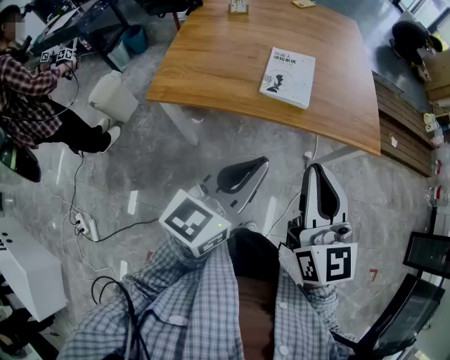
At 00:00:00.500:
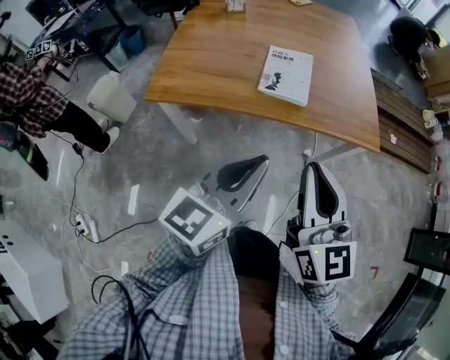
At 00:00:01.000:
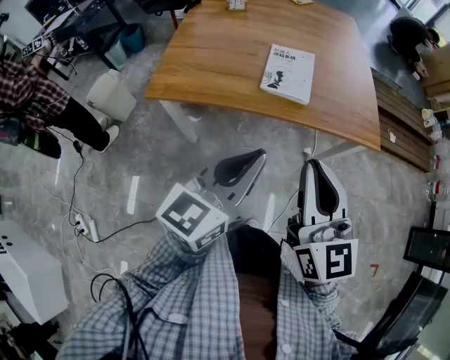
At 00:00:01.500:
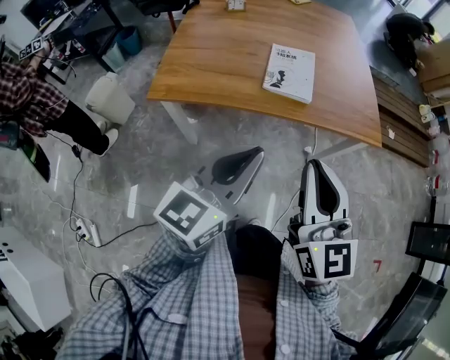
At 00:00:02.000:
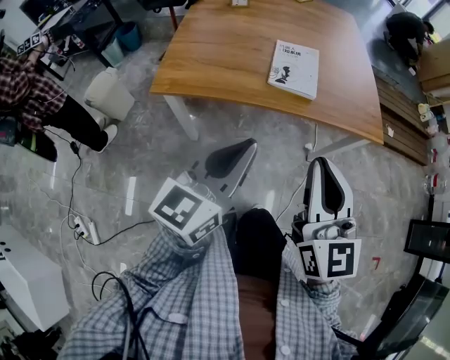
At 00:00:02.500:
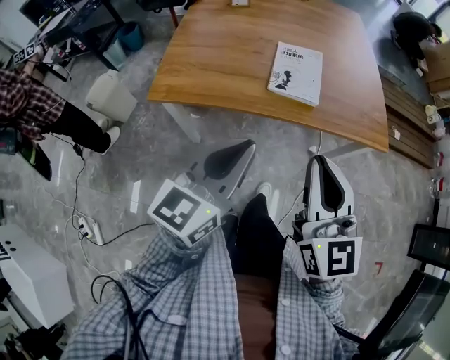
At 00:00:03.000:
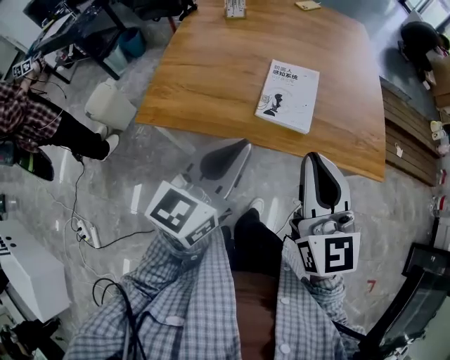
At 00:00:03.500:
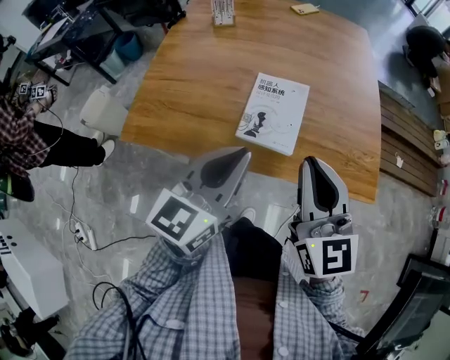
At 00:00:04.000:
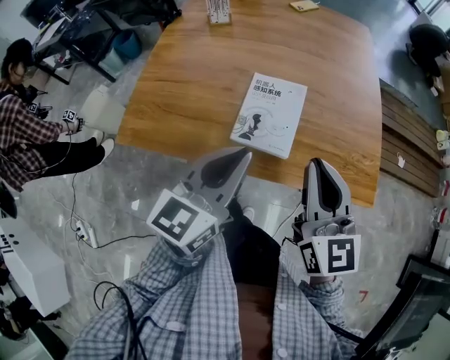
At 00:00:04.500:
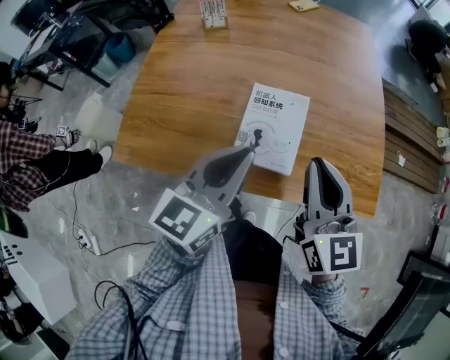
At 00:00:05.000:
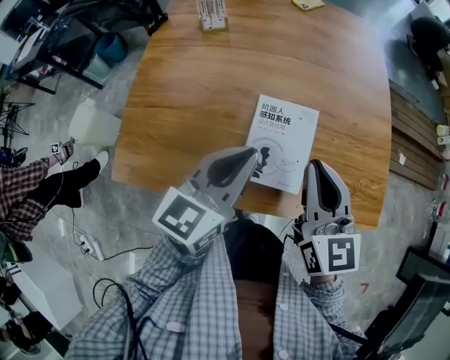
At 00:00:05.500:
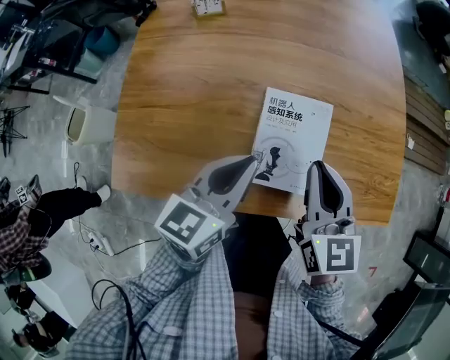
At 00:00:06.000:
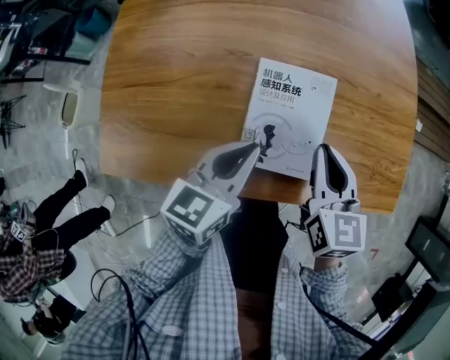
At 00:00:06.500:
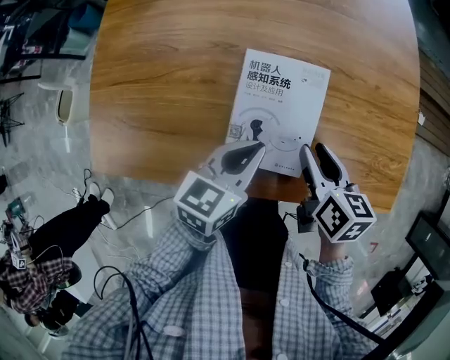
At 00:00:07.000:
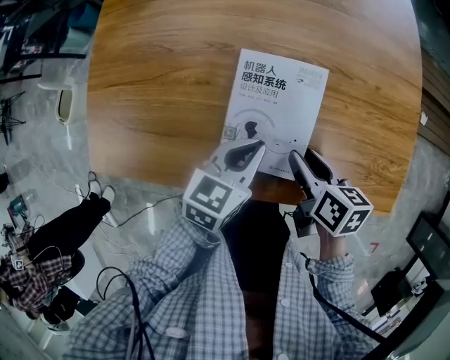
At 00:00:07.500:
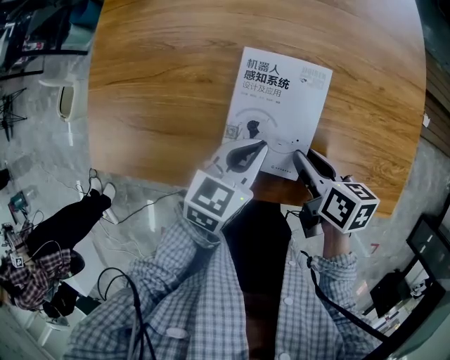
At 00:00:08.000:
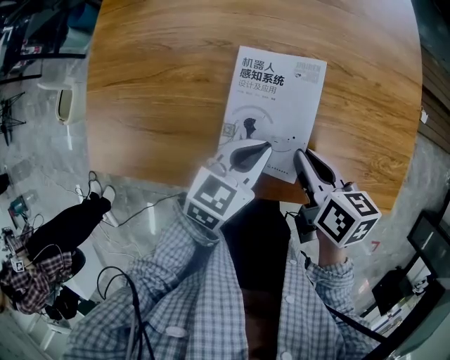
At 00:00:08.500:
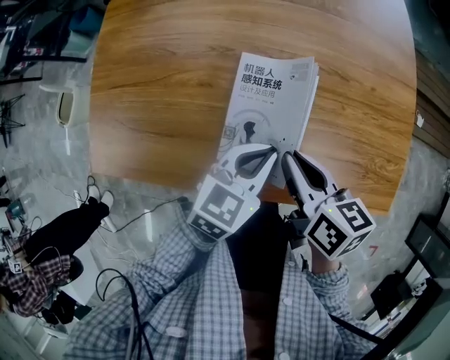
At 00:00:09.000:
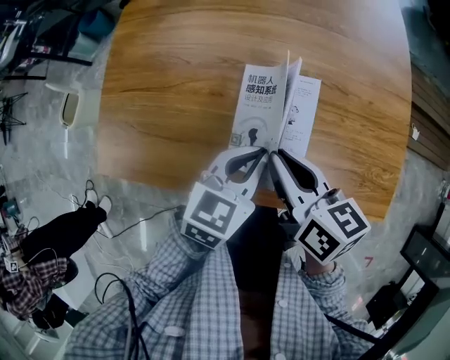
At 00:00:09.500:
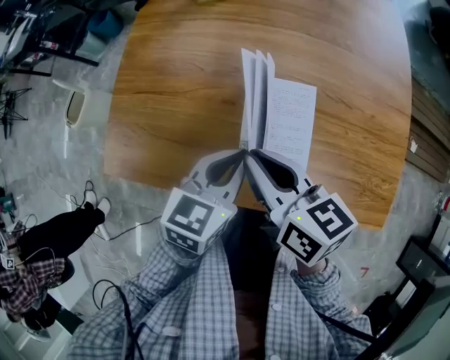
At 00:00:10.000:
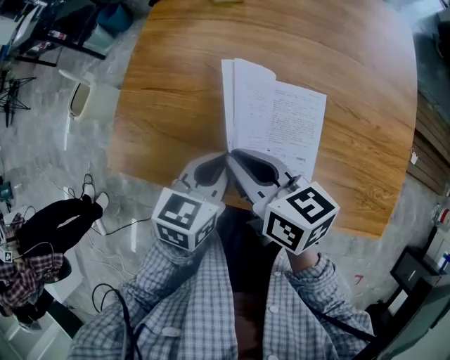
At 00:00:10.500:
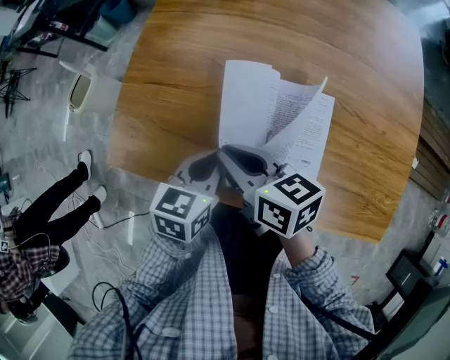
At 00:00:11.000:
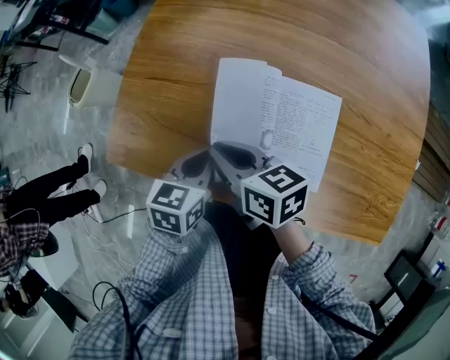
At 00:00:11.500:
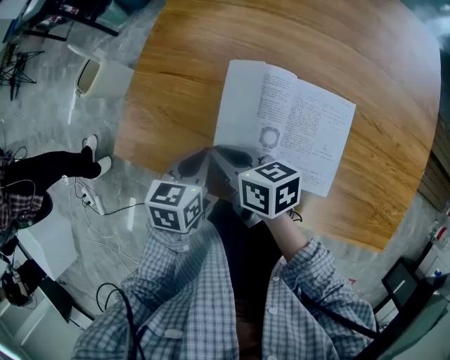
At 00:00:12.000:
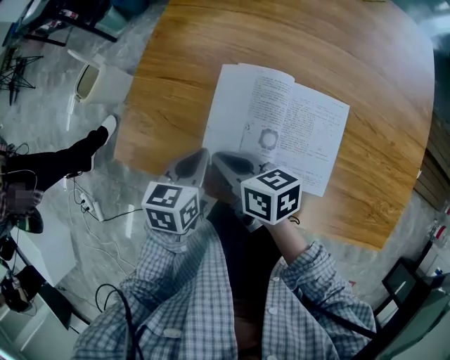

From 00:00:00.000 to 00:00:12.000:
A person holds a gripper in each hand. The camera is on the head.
From 00:00:00.000 to 00:00:02.000: The right gripper shifts by approximately 5 cm. The left gripper is displaced to the left by roughly 10 cm.
From 00:00:02.000 to 00:00:04.000: The two grippers go about 30 cm forward.
From 00:00:04.000 to 00:00:06.000: Both grippers move downward and forward, about 20 cm. The left gripper changes its angle by about 20 degrees. Meanwhile the right gripper rotates about 30 degrees.
From 00:00:06.000 to 00:00:08.000: The left gripper is displaced to the right and downward by some 10 cm; the right gripper is displaced downward by approximately 5 cm, changes its angle by some 40 degrees, and opens, then closes again.
From 00:00:08.000 to 00:00:10.000: The grippers both shift to the left and upward by roughly 20 cm. The right gripper rotates some 30 degrees, while the left gripper turns by about 20 degrees.
From 00:00:10.000 to 00:00:12.000: The left gripper shifts some 15 cm to the left and downward. Meanwhile the right gripper shifts some 15 cm downward and to the left.

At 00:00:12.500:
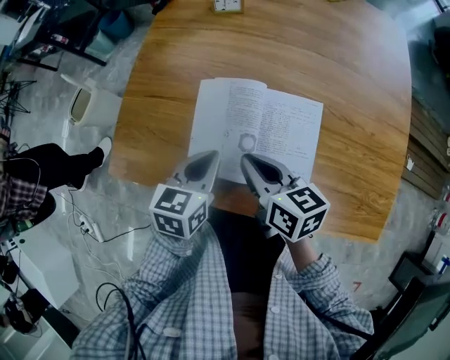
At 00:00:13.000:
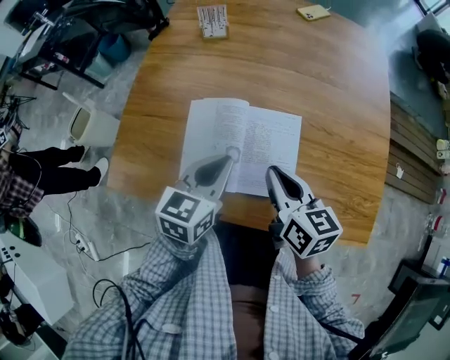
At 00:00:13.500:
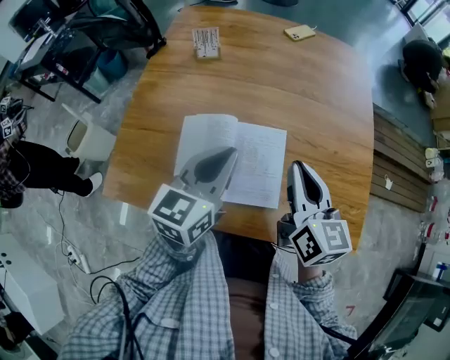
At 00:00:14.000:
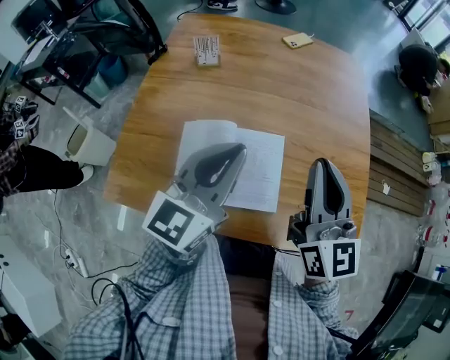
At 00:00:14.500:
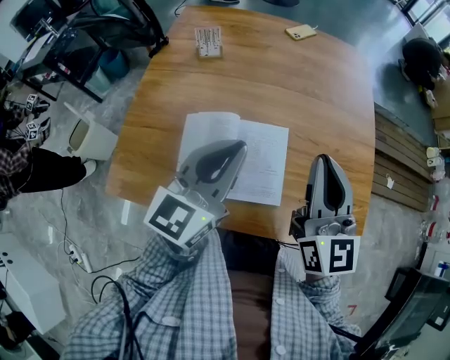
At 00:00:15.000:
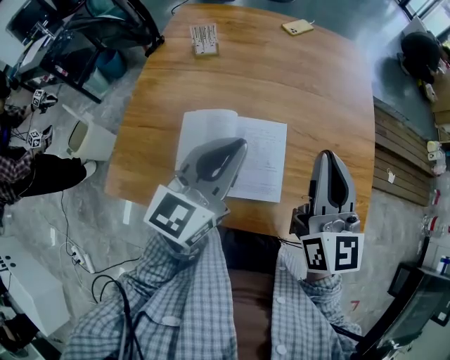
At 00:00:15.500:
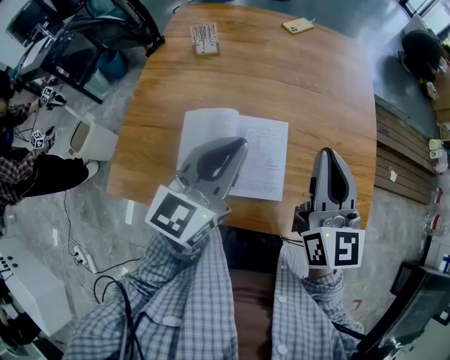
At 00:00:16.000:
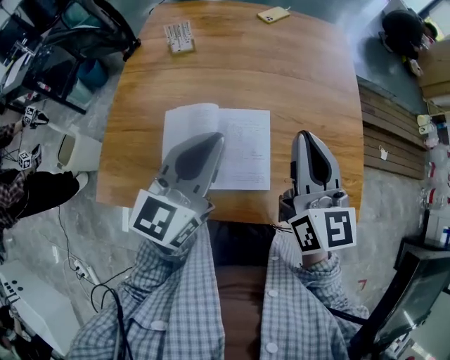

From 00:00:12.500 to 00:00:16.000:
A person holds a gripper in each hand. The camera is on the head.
From 00:00:12.500 to 00:00:14.500: Both grippers move upward and to the right, approximately 25 cm. The right gripper turns by roughly 60 degrees, while the left gripper angles its fingers upward, by roughly 40 degrees.
From 00:00:14.500 to 00:00:16.000: There are only small adjustments of the grippers.

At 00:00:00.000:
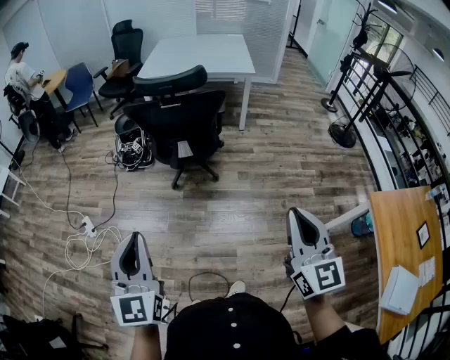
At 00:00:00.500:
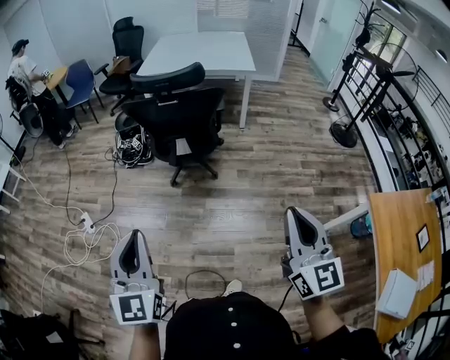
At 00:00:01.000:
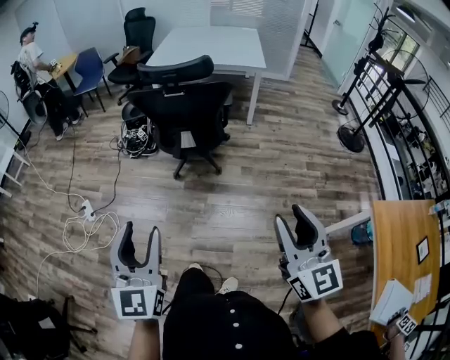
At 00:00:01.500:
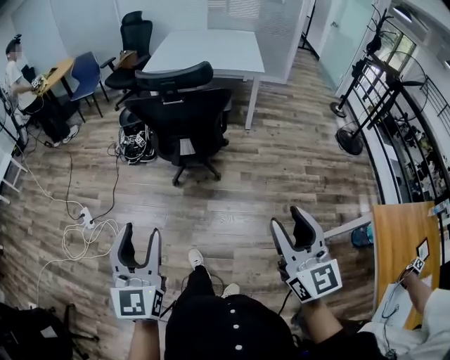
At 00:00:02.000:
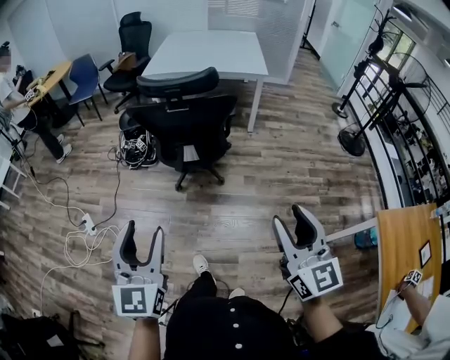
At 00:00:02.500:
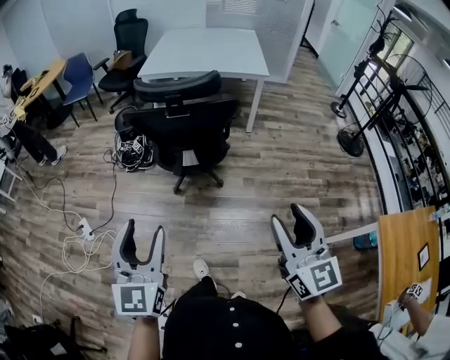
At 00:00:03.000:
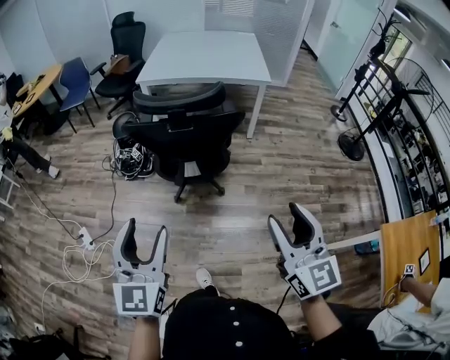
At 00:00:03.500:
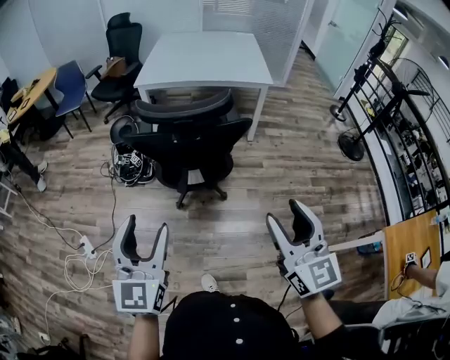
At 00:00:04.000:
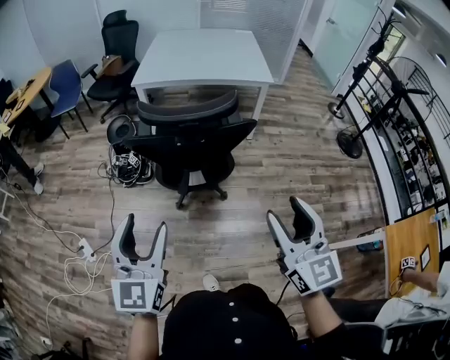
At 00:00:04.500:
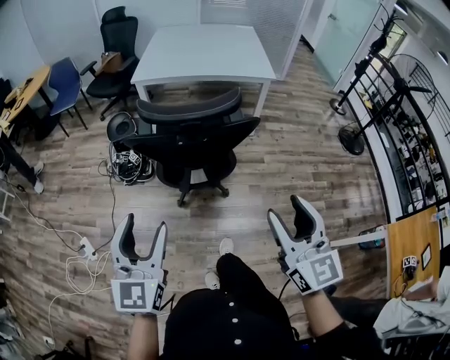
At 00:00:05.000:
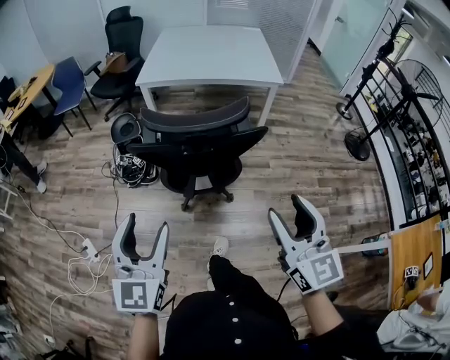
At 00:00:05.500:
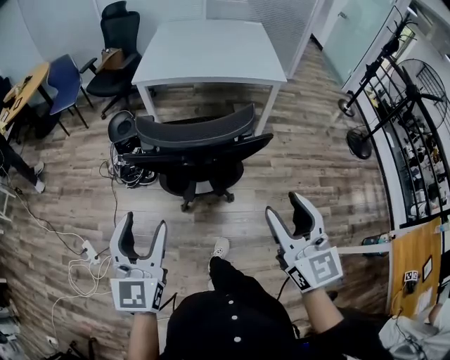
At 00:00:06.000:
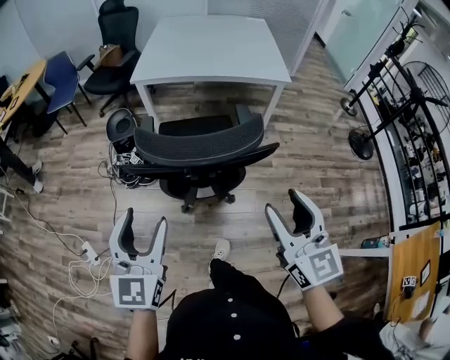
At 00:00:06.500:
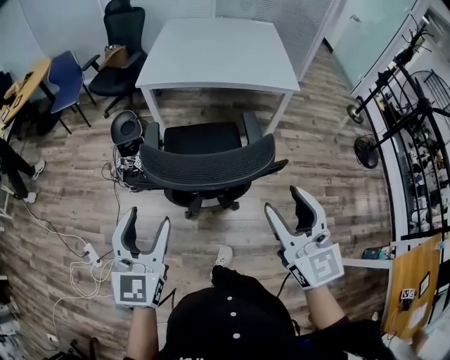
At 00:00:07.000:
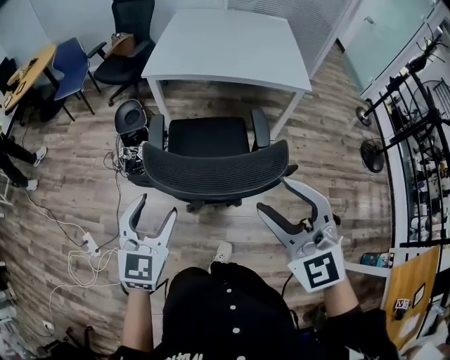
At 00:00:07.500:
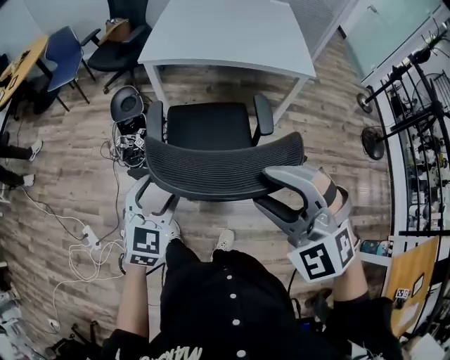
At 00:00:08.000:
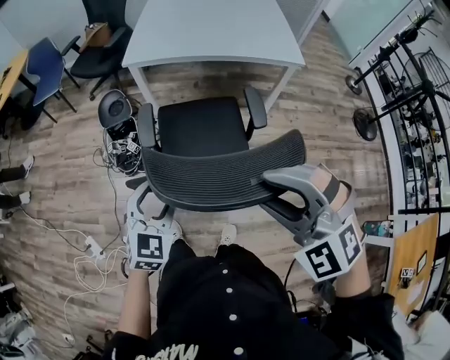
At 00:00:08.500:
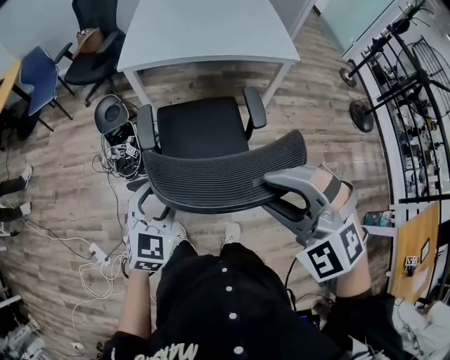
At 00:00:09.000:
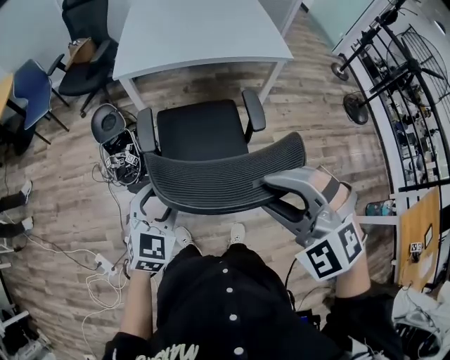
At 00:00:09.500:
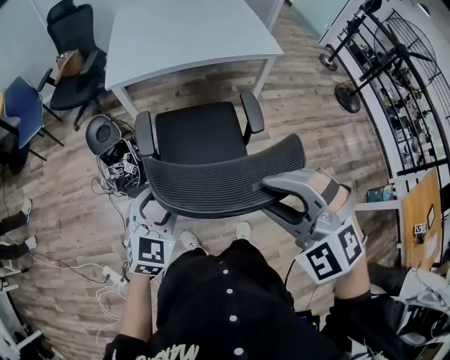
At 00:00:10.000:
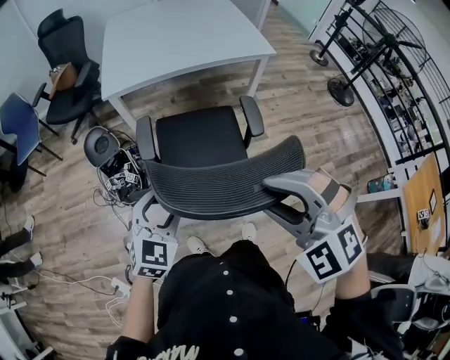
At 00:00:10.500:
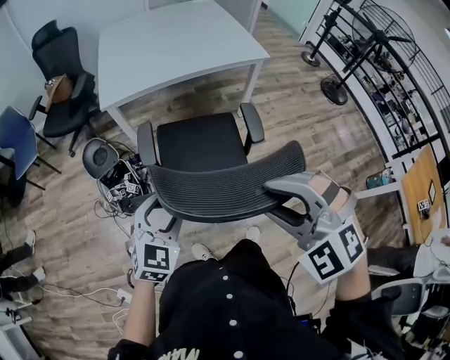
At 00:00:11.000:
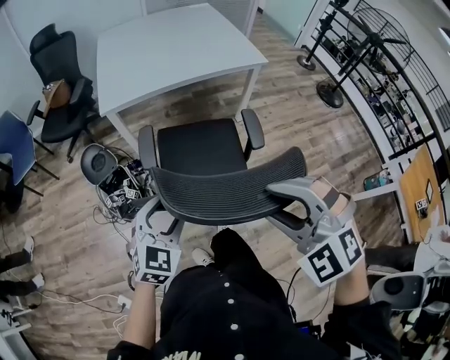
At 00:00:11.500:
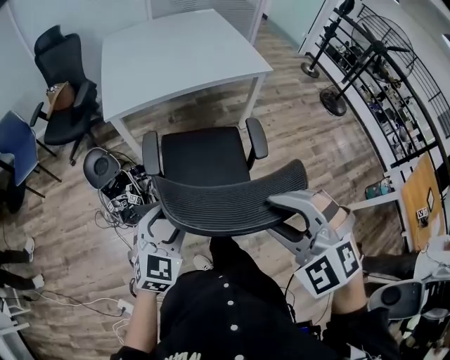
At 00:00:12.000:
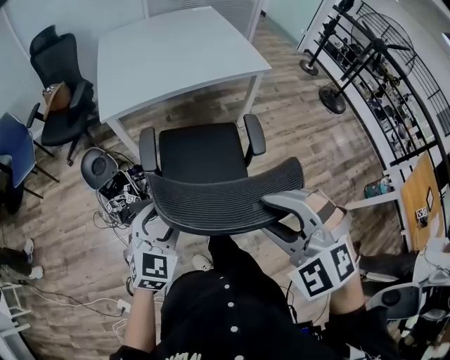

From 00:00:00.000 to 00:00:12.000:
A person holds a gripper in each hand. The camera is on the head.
From 00:00:00.000 to 00:00:02.000: Both grippers travel together forward, some 10 cm. The left gripper opens up, while the right gripper opens.
From 00:00:02.000 to 00:00:04.000: The left gripper travels forward by approximately 20 cm. The right gripper travels forward and to the left by some 20 cm.
From 00:00:04.000 to 00:00:06.000: The grippers both shift forward by approximately 15 cm.
From 00:00:06.000 to 00:00:08.000: The left gripper is displaced forward and downward by approximately 20 cm, and swivels about 30 degrees; the right gripper shifts some 15 cm forward and to the left, and rolls counterclockwise, seen from behind, by some 60 degrees.
From 00:00:08.000 to 00:00:10.000: Both grippers travel together to the left, some 5 cm.
From 00:00:10.000 to 00:00:12.000: The left gripper changes place by about 5 cm.
